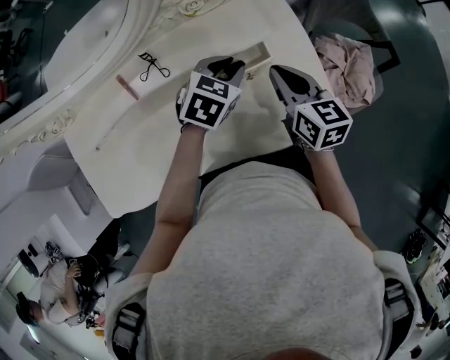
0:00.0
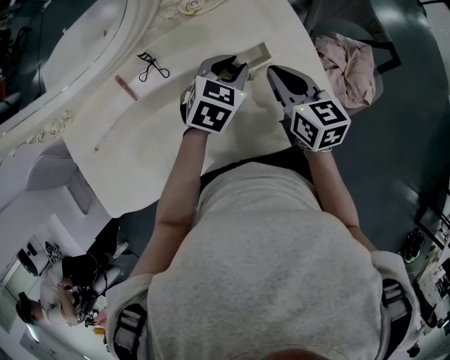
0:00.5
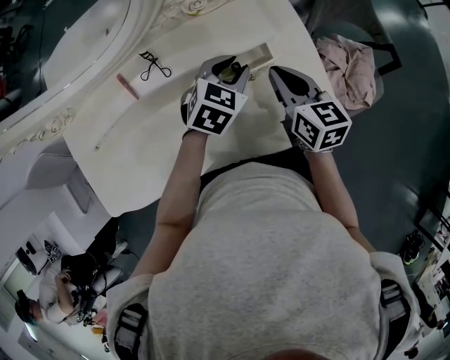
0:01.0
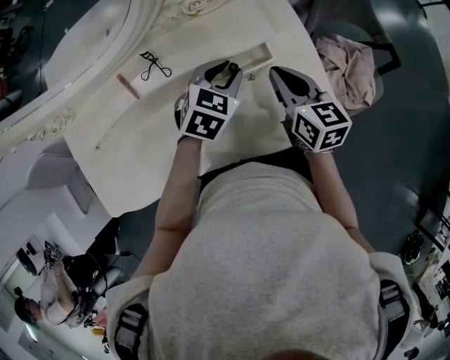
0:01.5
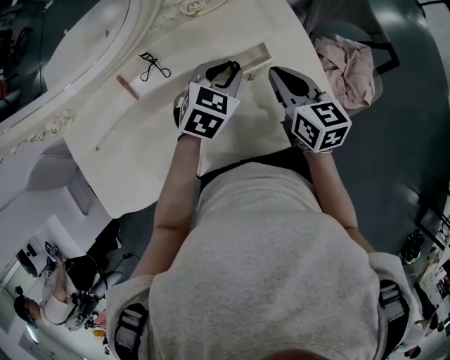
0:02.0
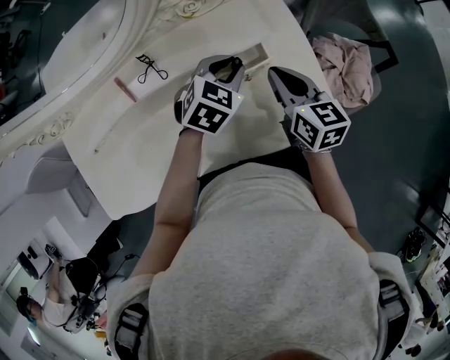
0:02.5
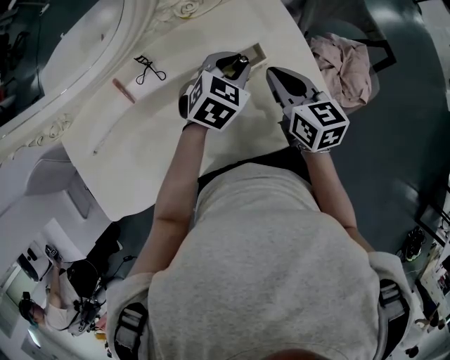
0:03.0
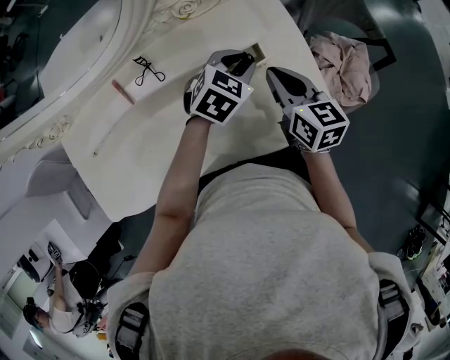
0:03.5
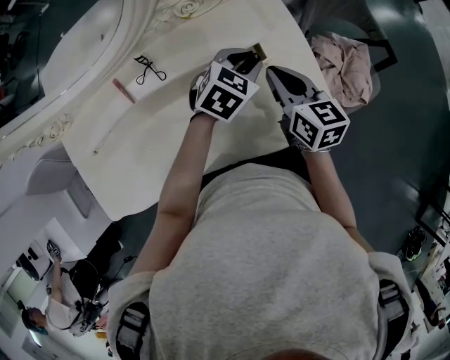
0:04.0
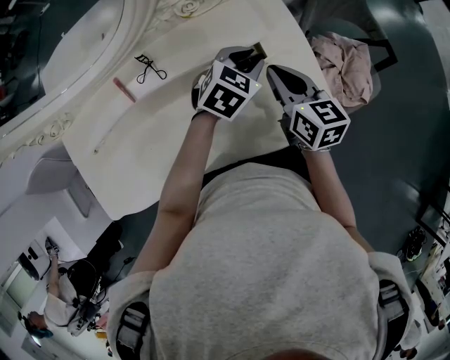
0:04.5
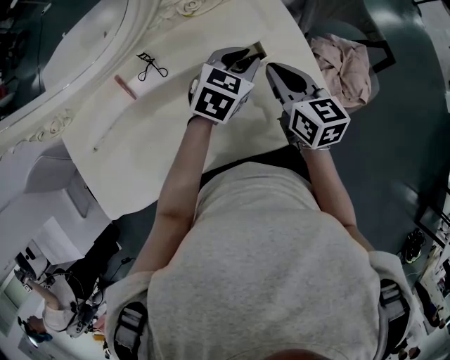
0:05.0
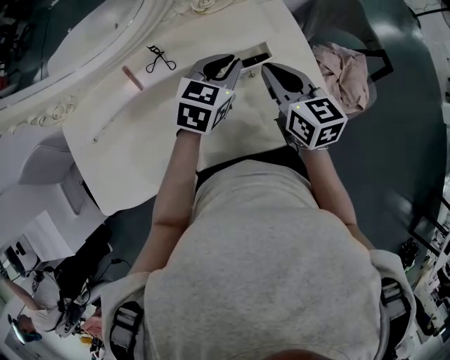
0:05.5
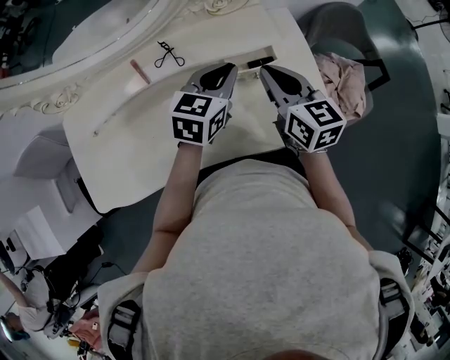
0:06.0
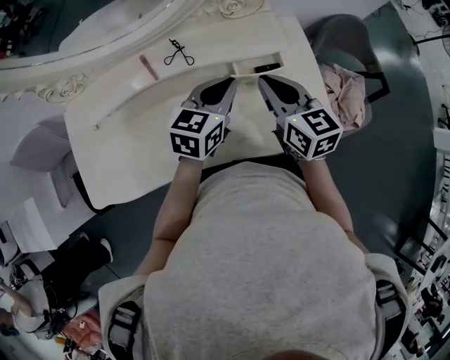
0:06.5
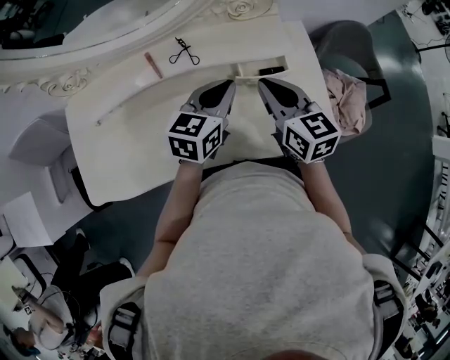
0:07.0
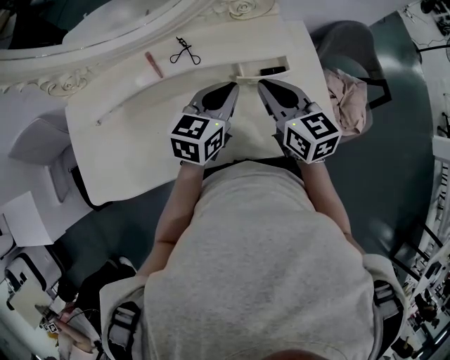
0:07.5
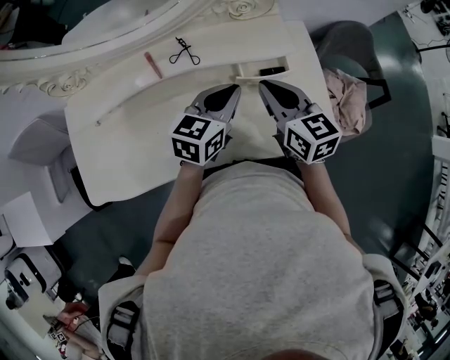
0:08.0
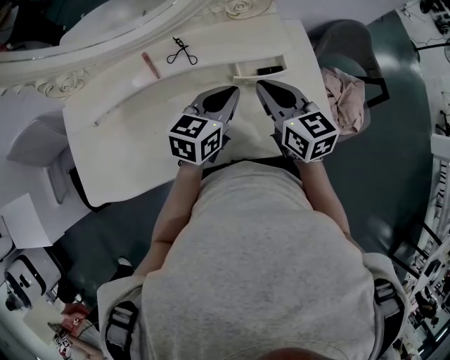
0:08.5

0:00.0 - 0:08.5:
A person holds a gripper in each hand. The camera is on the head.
0:00.0 - 0:02.0: There are only small adjustments of the grippers.
0:02.0 - 0:04.0: The left gripper goes about 5 cm to the right.
0:04.0 - 0:06.5: The right gripper moves to the left and upward, some 10 cm; the left gripper goes about 15 cm to the left, backward and upward, and rotates some 30 degrees.
0:06.5 - 0:08.5: The grippers make only small movements.

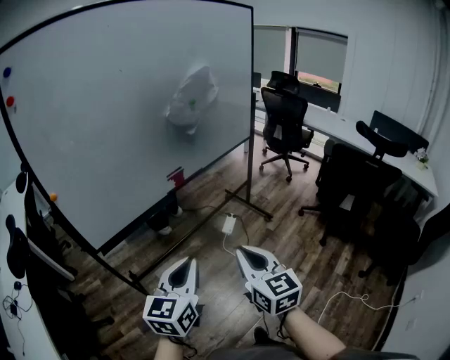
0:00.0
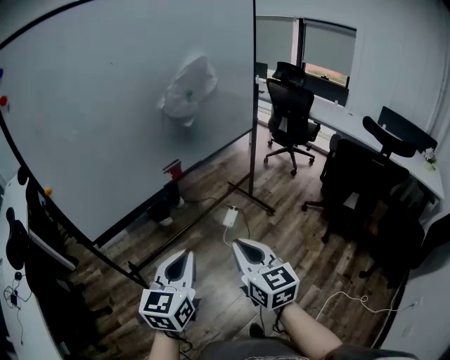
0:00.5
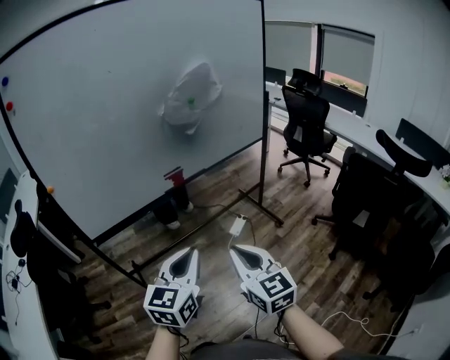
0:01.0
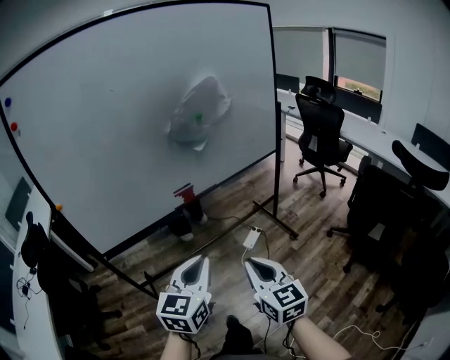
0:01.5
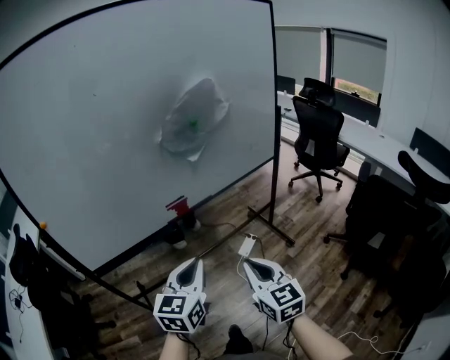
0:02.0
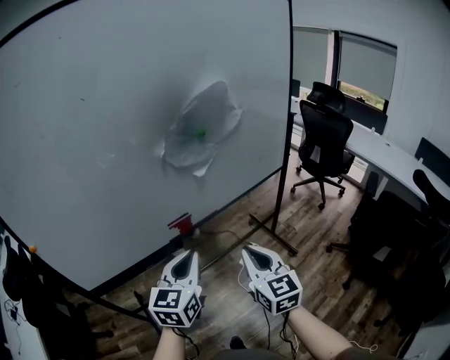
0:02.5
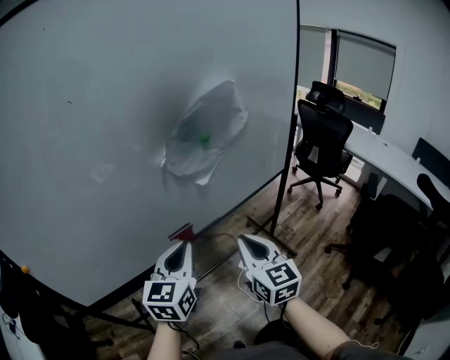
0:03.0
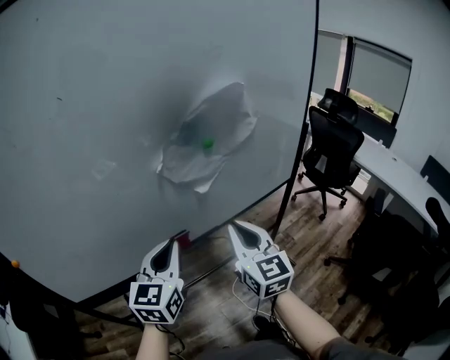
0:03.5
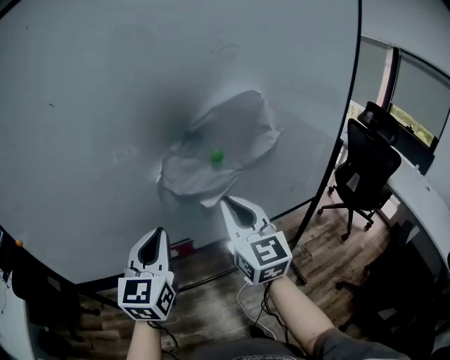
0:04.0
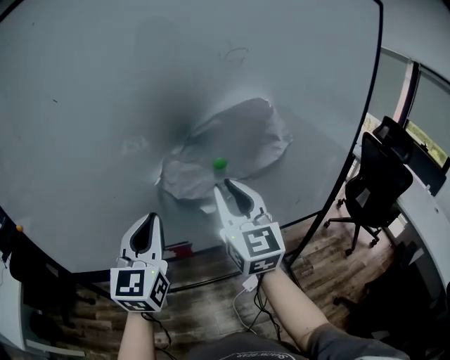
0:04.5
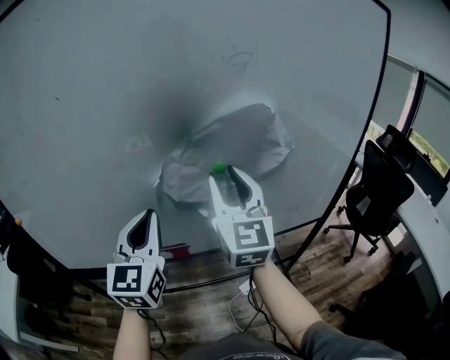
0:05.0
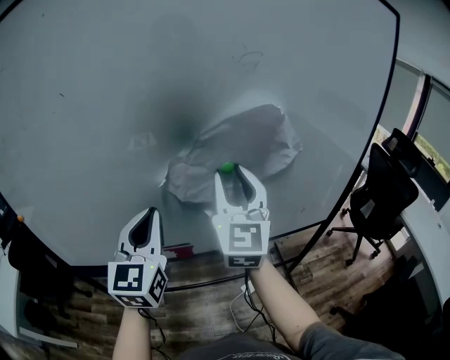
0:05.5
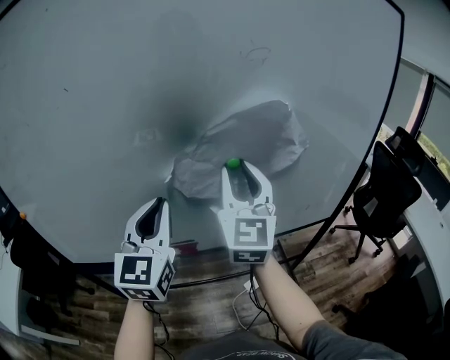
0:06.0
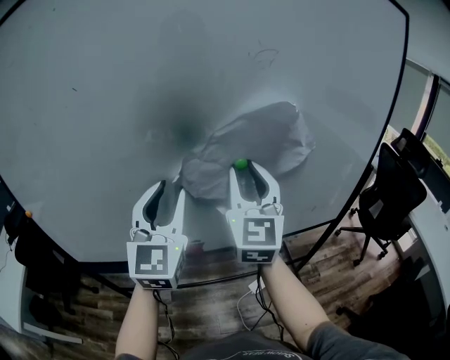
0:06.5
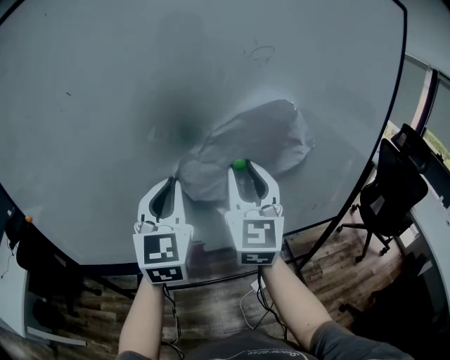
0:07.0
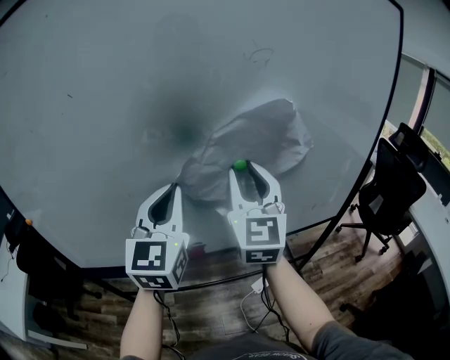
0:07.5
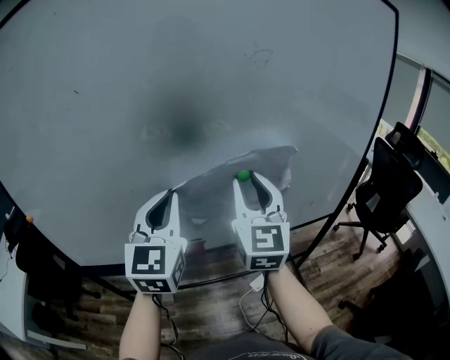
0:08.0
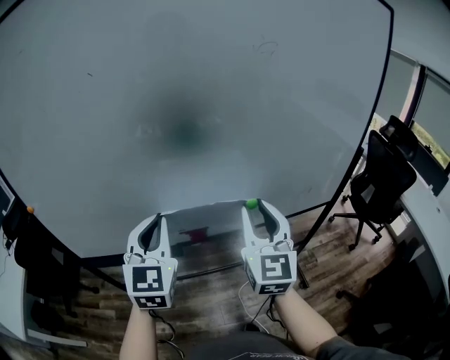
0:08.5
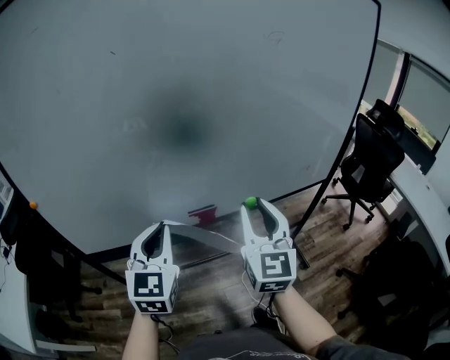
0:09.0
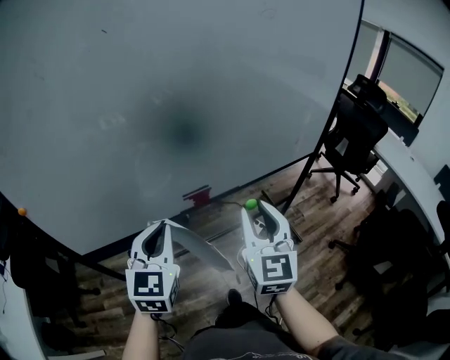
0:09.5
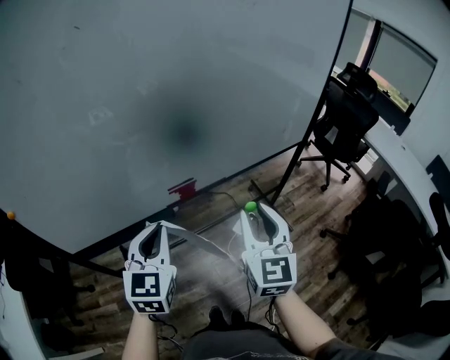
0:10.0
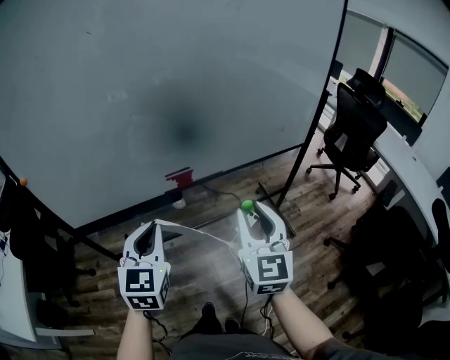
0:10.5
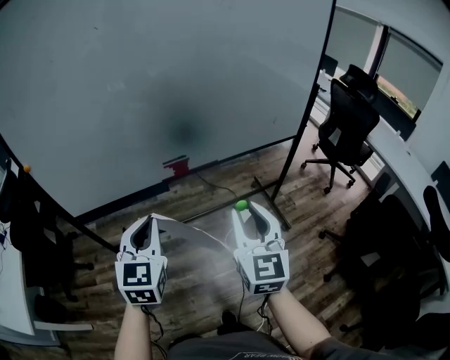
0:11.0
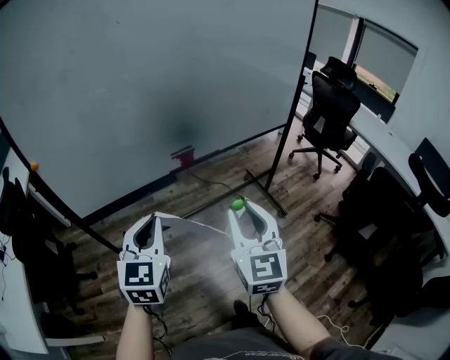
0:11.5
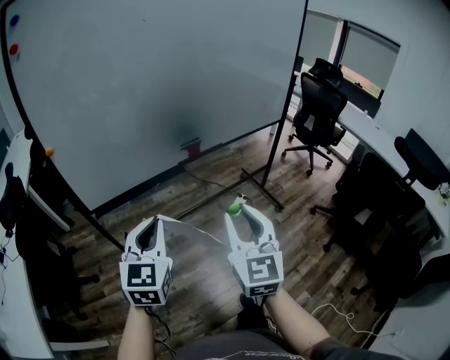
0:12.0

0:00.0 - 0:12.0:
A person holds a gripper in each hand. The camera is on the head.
0:00.0 - 0:02.0: The two grippers go approximately 20 cm forward and to the right.
0:02.0 - 0:04.0: The two grippers go approximately 30 cm forward. The right gripper swivels about 20 degrees. The left gripper swivels about 30 degrees.
0:04.0 - 0:06.0: The left gripper travels upward by some 5 cm, while the right gripper goes some 10 cm upward and forward, and opens its fingers.
0:06.0 - 0:08.0: The left gripper opens, then closes once more.
0:08.0 - 0:10.0: The right gripper heads backward and downward, covering approximately 25 cm, and swivels some 20 degrees. Meanwhile the left gripper goes roughly 25 cm downward, backward and to the left, and changes its angle by some 20 degrees.
0:10.0 - 0:12.0: The right gripper travels backward and to the left by about 30 cm, while the left gripper goes about 25 cm backward.

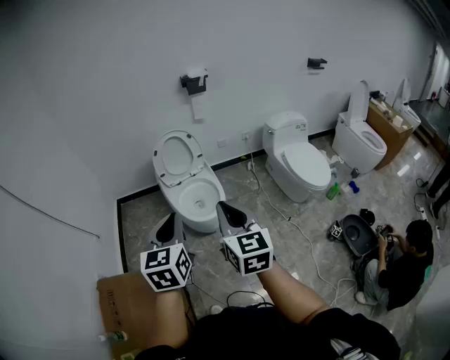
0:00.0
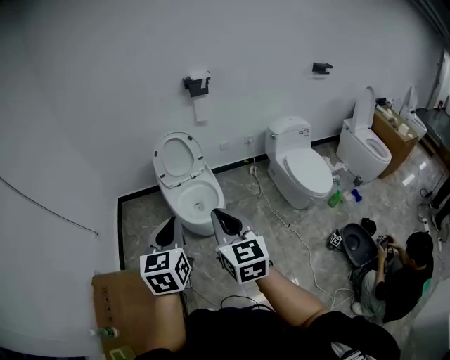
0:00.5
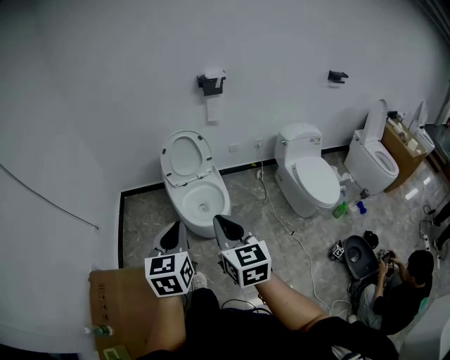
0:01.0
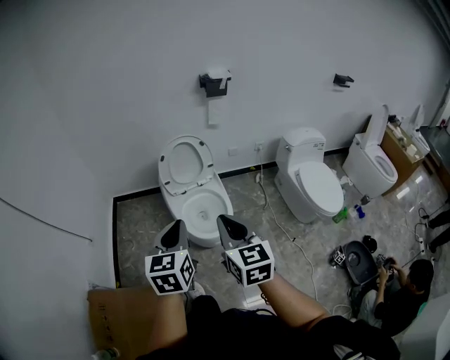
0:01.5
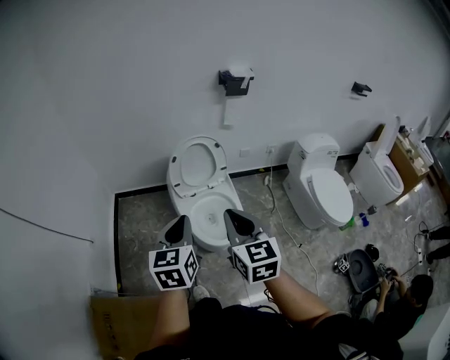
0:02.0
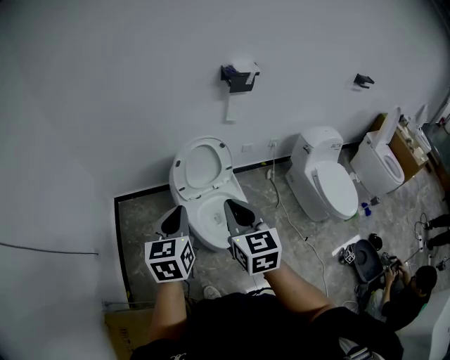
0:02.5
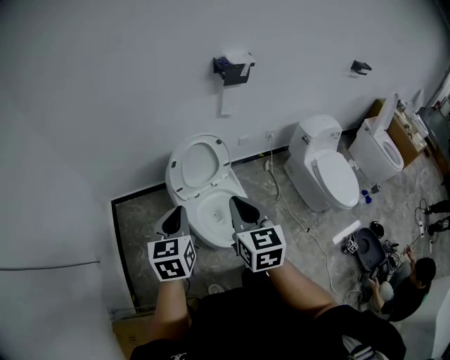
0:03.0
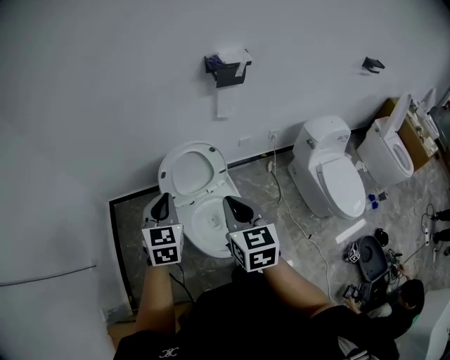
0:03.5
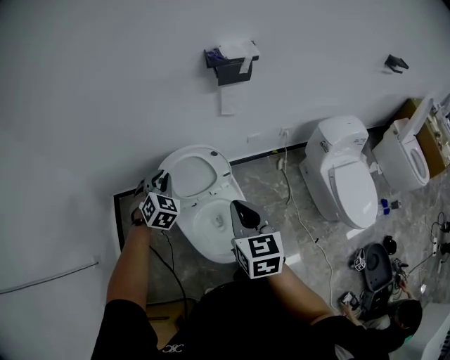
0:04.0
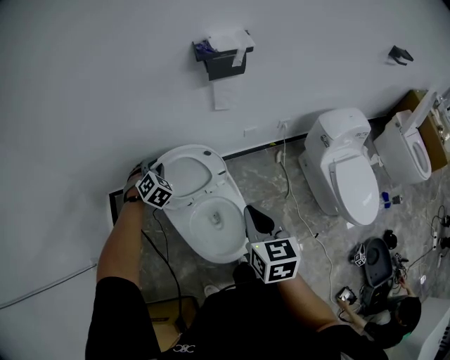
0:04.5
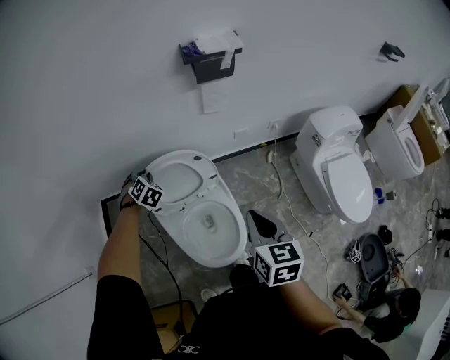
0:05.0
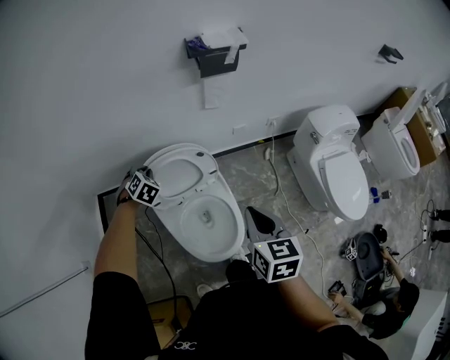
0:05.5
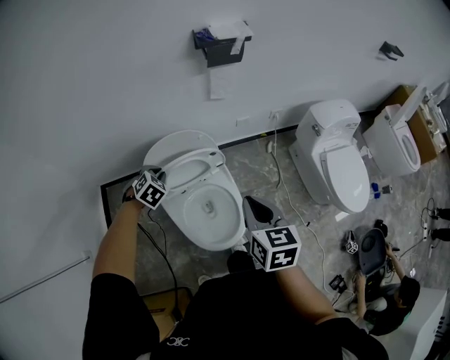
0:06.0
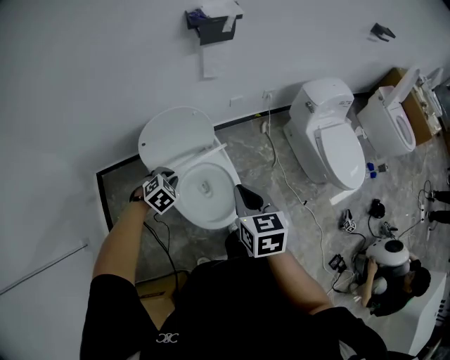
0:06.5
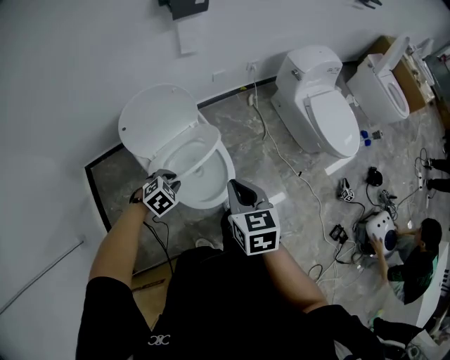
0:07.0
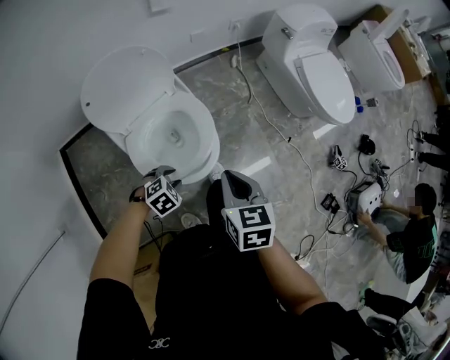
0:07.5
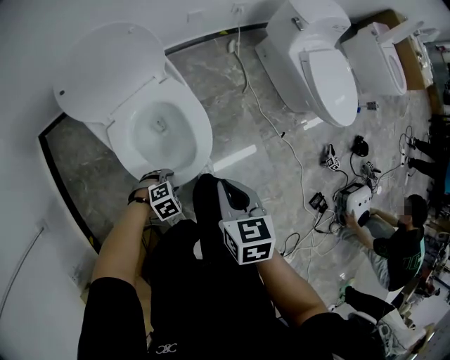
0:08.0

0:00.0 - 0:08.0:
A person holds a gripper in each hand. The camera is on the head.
0:00.0 - 0:02.0: Both grippers move forward, about 25 cm.
0:02.0 - 0:04.0: The grippers both shift forward by about 35 cm. The left gripper rolls clockwise, seen from behind, by roughly 50 degrees.
0:04.0 - 0:06.0: The left gripper travels downward by about 10 cm, and rotates approximately 30 degrees.
0:06.0 - 0:08.0: The left gripper shifts by some 50 cm, rotates about 40 degrees, and opens its fingers. Meanwhile the right gripper travels downward by about 20 cm, and turns by about 20 degrees.
